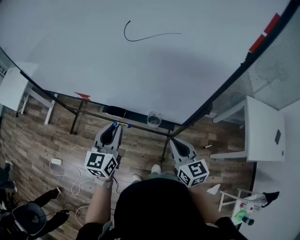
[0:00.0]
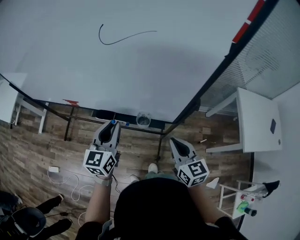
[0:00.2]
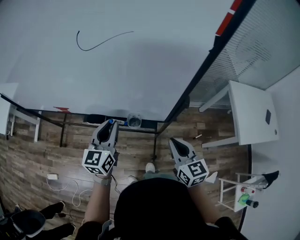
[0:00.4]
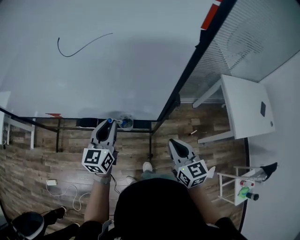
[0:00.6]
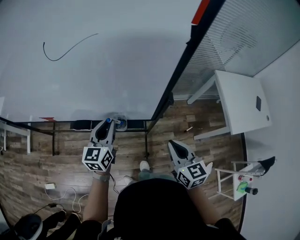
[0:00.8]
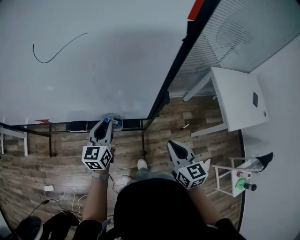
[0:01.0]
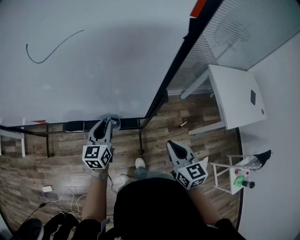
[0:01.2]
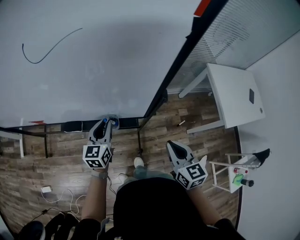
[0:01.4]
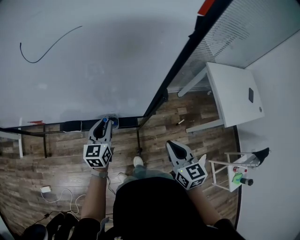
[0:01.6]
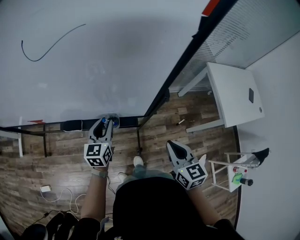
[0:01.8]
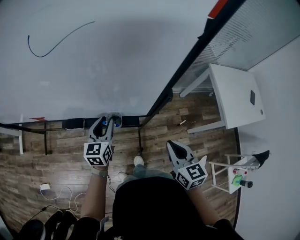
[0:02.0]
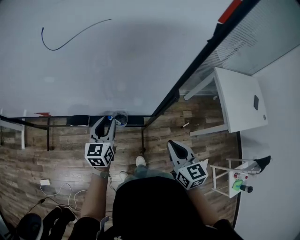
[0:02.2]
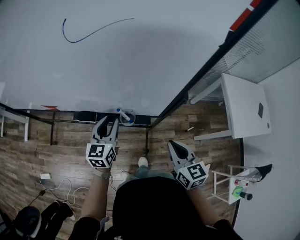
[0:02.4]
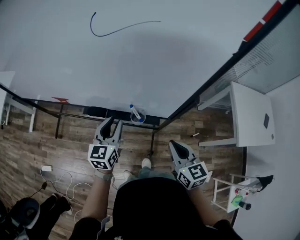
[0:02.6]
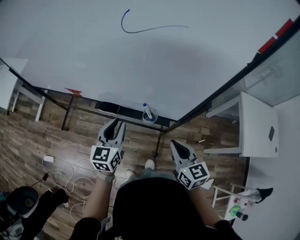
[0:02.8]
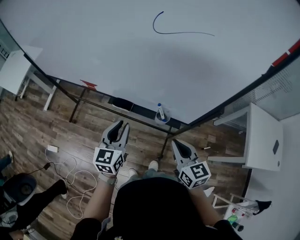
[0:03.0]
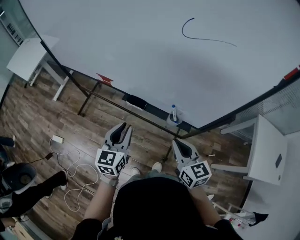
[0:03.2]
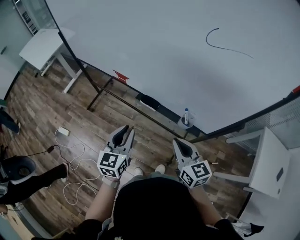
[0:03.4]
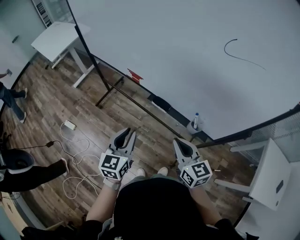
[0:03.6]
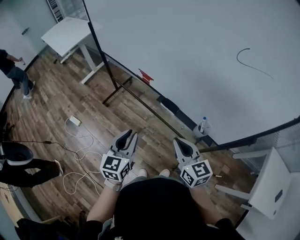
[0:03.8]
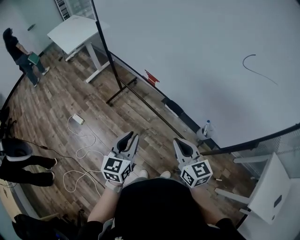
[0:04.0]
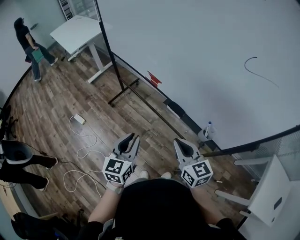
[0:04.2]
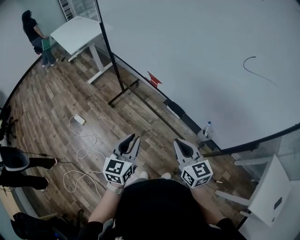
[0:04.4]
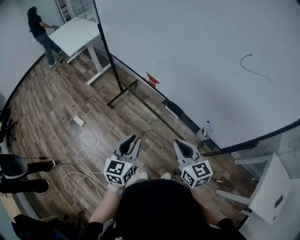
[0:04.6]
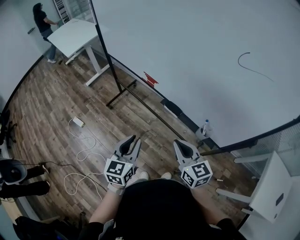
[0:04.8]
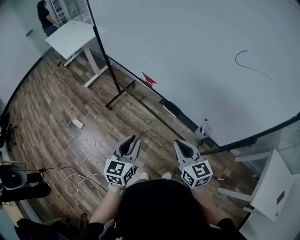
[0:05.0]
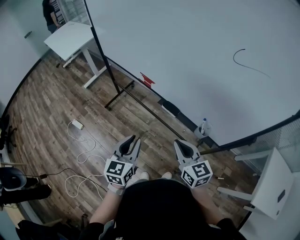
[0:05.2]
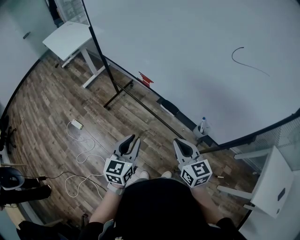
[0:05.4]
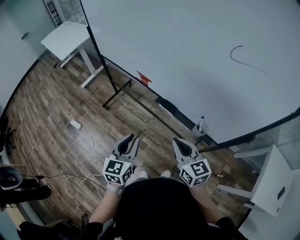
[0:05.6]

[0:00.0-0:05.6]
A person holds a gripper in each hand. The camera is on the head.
0:00.0 to 0:01.4: The left gripper moves to the right, downward and forward, approximately 20 cm, while the right gripper heads to the right, covering approximately 15 cm, and changes its angle by about 20 degrees.
0:01.4 to 0:02.8: The right gripper is displaced to the left by approximately 10 cm. The left gripper is displaced to the left, backward and upward by roughly 15 cm.
0:02.8 to 0:04.2: The right gripper ends up about 25 cm from where it was, and swivels about 30 degrees, while the left gripper changes place by approximately 25 cm, and rotates approximately 30 degrees.
0:04.2 to 0:05.6: The grippers stay close to where they were, moving slightly.

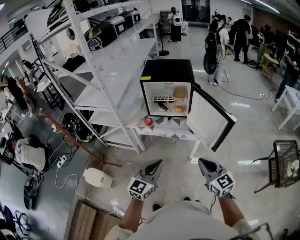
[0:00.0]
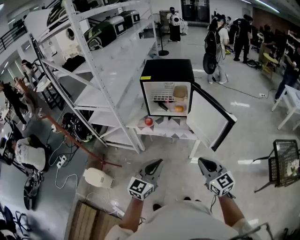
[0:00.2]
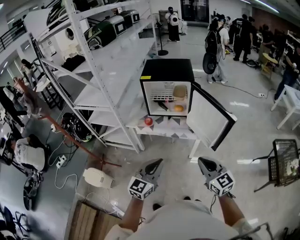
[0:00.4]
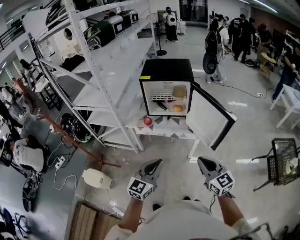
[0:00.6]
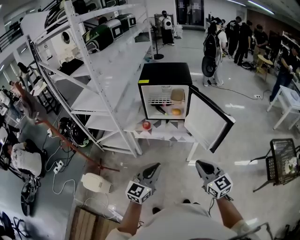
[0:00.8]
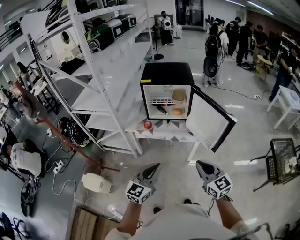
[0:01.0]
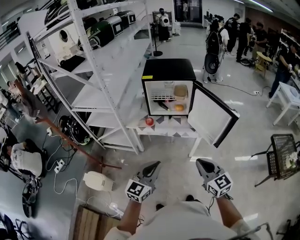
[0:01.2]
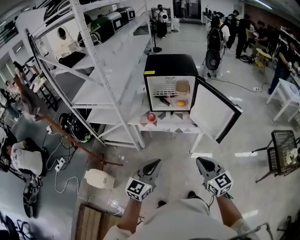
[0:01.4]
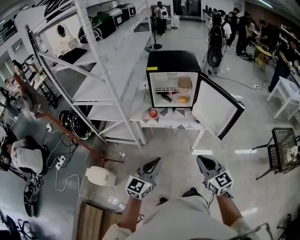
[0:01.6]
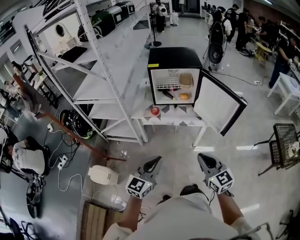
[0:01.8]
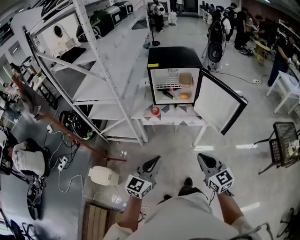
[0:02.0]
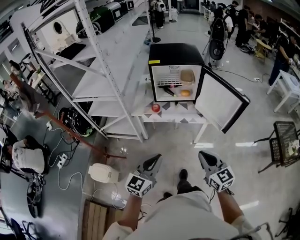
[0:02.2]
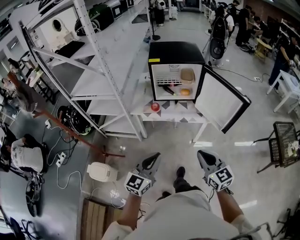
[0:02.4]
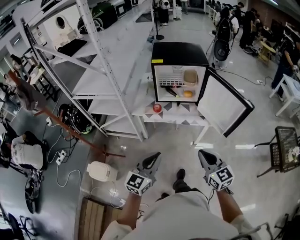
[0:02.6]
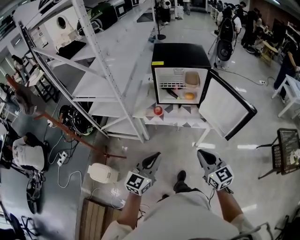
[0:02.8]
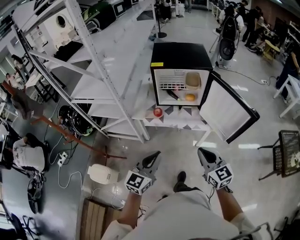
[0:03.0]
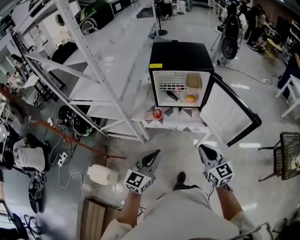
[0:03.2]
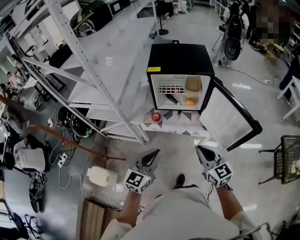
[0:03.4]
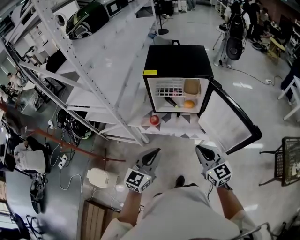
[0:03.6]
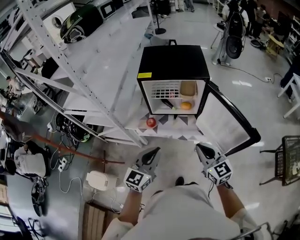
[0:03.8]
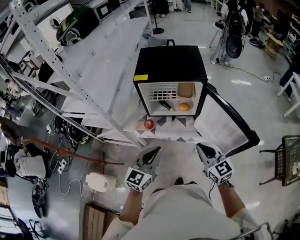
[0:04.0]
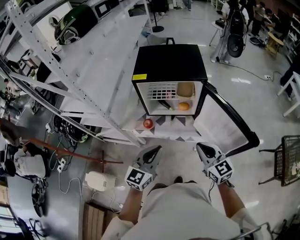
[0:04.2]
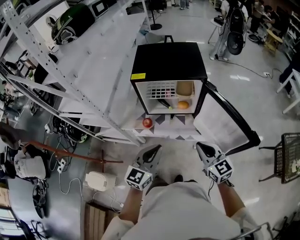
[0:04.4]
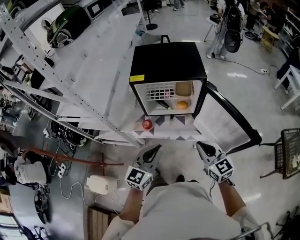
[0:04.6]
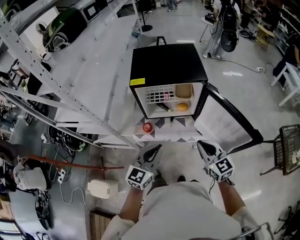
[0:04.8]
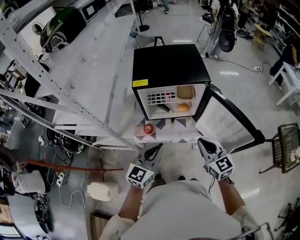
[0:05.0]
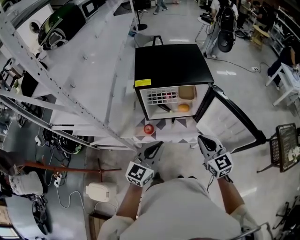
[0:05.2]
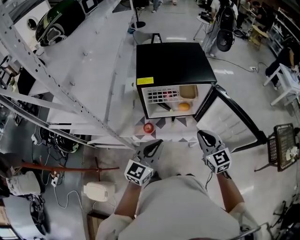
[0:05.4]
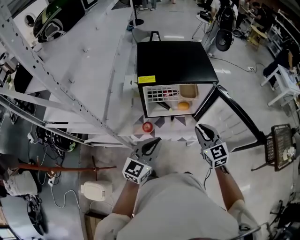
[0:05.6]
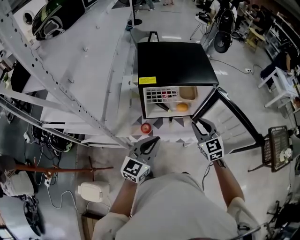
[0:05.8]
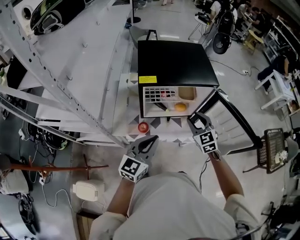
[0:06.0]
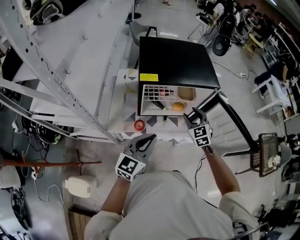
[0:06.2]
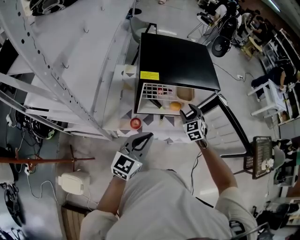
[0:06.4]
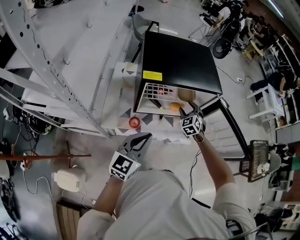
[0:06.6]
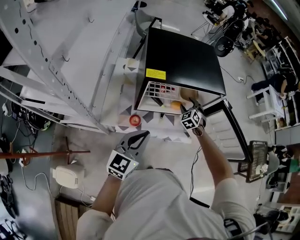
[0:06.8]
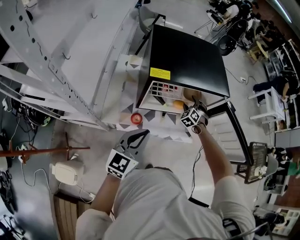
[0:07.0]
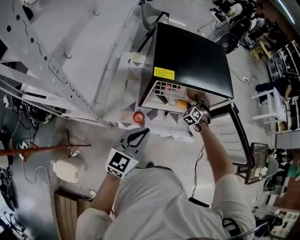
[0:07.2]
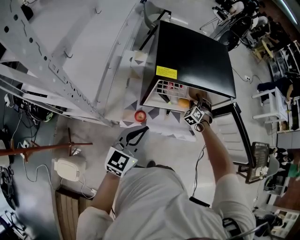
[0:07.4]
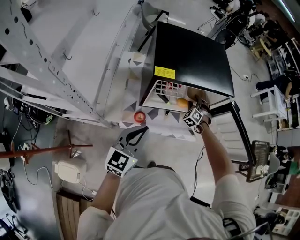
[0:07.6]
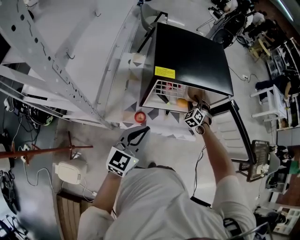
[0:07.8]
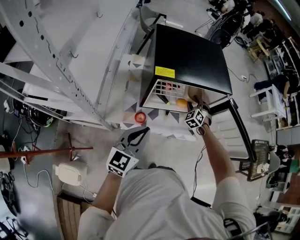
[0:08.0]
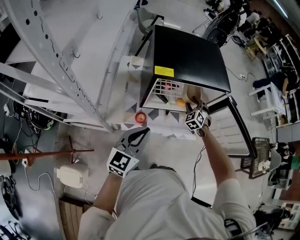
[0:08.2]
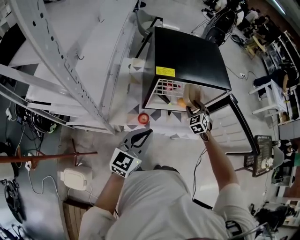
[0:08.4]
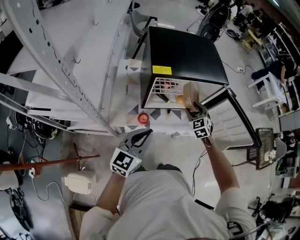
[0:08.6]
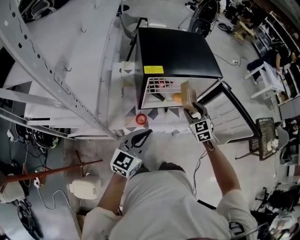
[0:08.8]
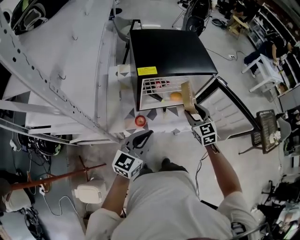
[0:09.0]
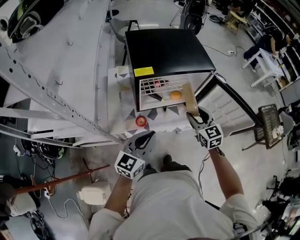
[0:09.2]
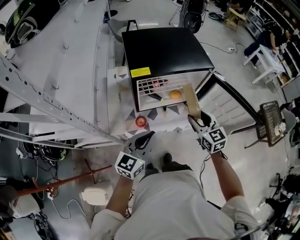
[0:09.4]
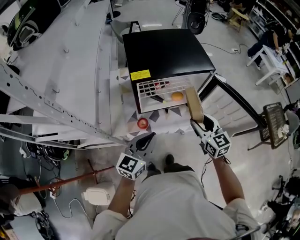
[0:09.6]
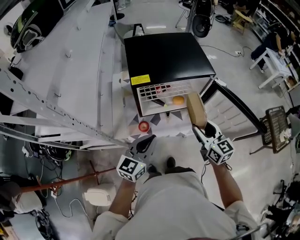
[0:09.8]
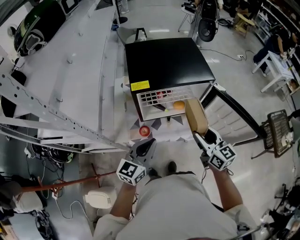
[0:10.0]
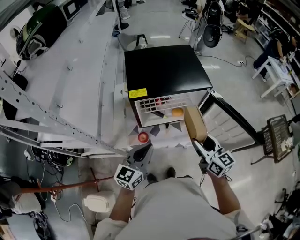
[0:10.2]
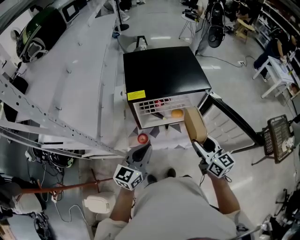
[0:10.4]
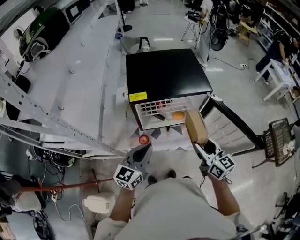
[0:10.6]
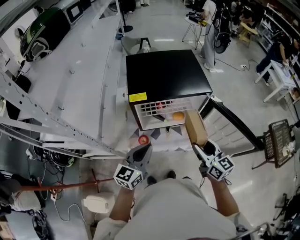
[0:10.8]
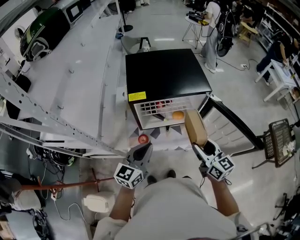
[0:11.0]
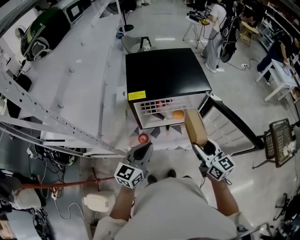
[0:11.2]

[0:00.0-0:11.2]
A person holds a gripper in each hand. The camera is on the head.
0:00.0 to 0:01.6: Both grippers move to the left, some 10 cm.
0:01.6 to 0:03.2: The two grippers go approximately 15 cm forward.
0:03.2 to 0:04.8: The grippers both shift forward by roughly 15 cm.
0:04.8 to 0:06.4: The right gripper travels forward and downward by roughly 25 cm, turns by roughly 40 degrees, and opens. Meanwhile the left gripper travels to the left and forward by approximately 10 cm.
0:06.4 to 0:08.0: The left gripper goes roughly 5 cm to the left. Meanwhile the right gripper heads forward and downward, covering roughly 10 cm, and changes its angle by approximately 20 degrees.
0:08.0 to 0:09.6: The left gripper moves to the right, approximately 5 cm. Meanwhile the right gripper is displaced backward and upward by about 25 cm, and rotates around the line of its fingers by roughly 50 degrees, clockwise from behind.
0:09.6 to 0:11.2: The right gripper moves approximately 5 cm.

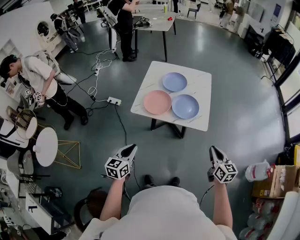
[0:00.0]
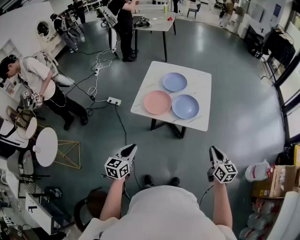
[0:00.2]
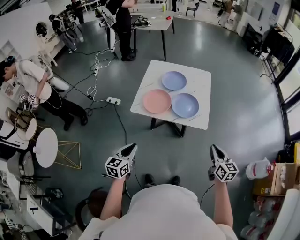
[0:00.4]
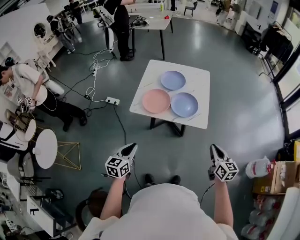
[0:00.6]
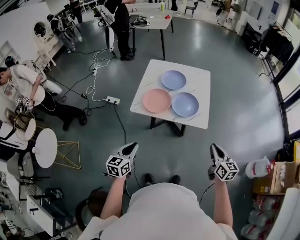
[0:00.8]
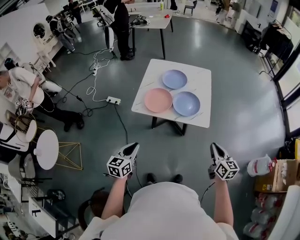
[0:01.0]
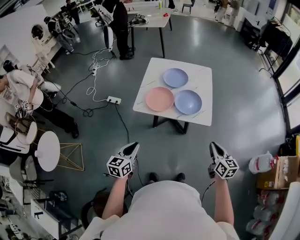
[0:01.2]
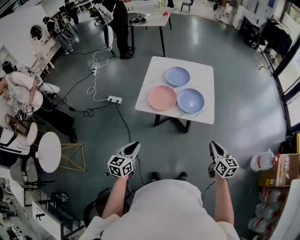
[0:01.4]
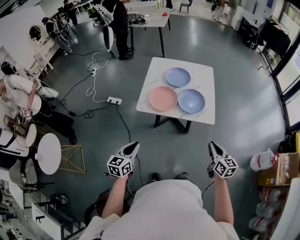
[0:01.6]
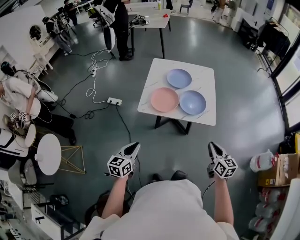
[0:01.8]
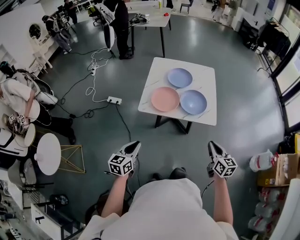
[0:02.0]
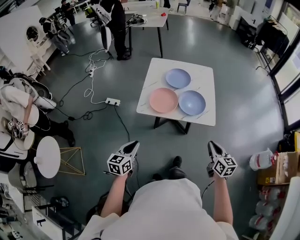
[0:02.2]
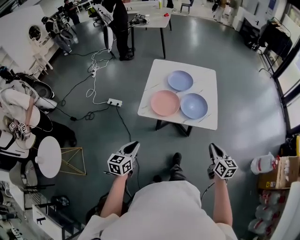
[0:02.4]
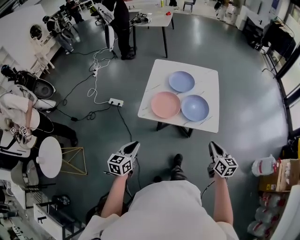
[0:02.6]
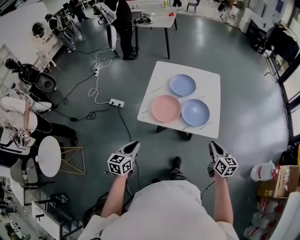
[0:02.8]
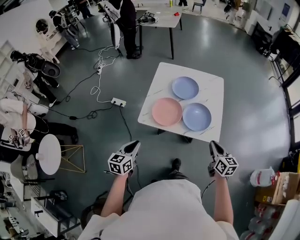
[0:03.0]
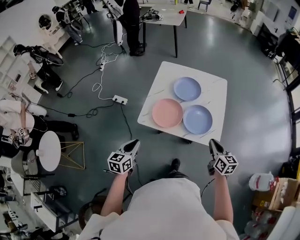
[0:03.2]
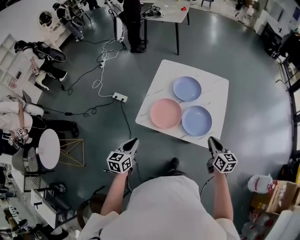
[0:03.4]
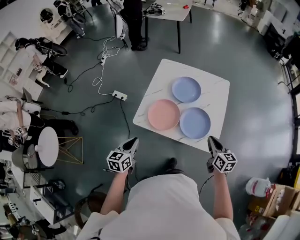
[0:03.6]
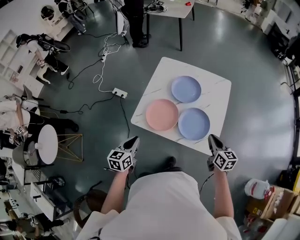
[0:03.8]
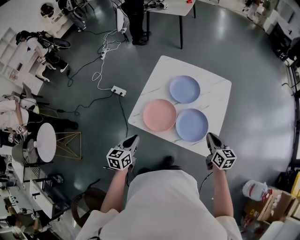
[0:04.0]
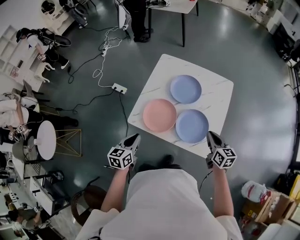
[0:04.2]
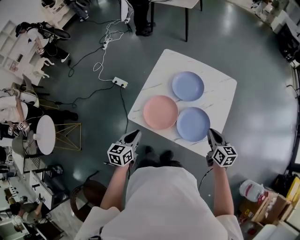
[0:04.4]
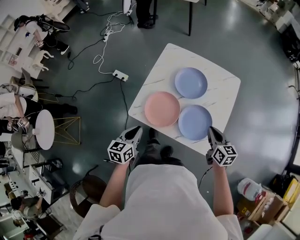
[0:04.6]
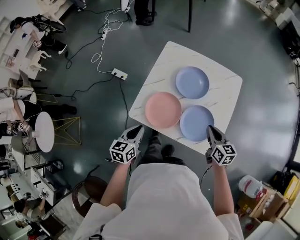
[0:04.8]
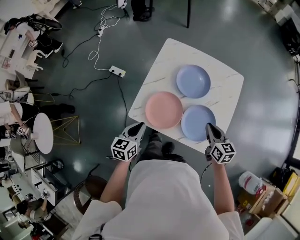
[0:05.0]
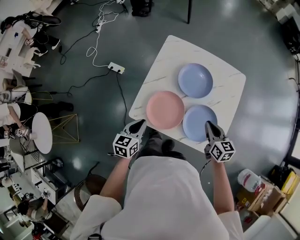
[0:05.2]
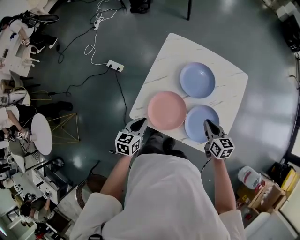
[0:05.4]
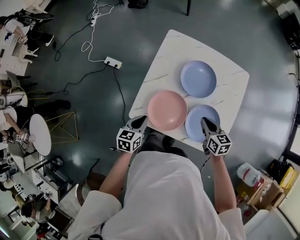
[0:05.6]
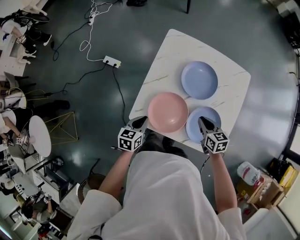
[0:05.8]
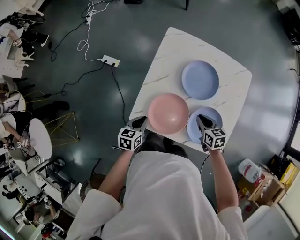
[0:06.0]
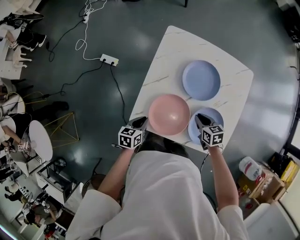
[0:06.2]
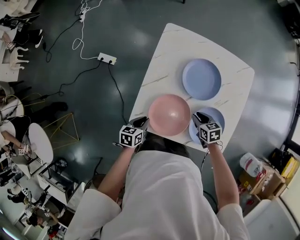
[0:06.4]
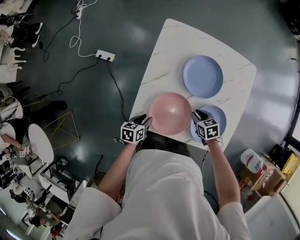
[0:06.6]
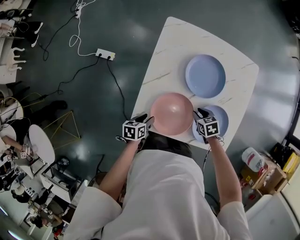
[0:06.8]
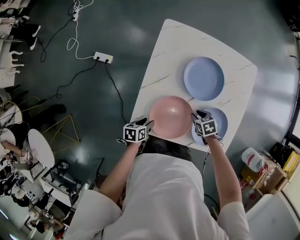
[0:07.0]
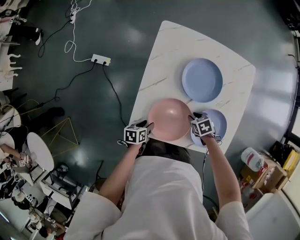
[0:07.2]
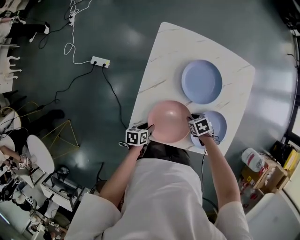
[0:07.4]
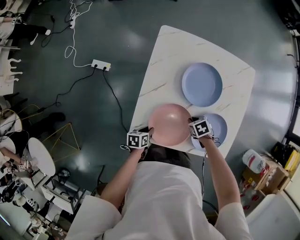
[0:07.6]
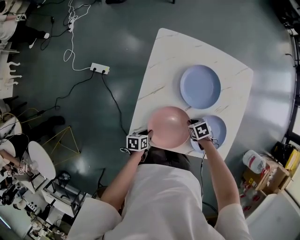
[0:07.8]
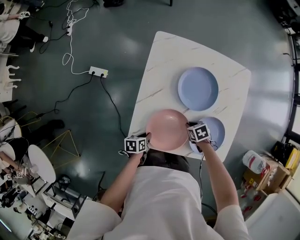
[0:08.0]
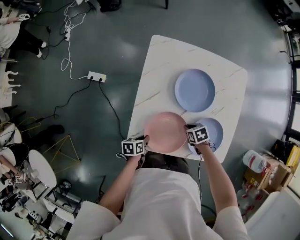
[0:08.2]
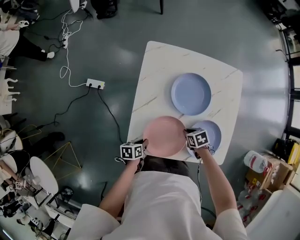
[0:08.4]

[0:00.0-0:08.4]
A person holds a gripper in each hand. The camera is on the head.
0:00.0 to 0:01.4: Both grippers move to the left, about 5 cm.
0:01.4 to 0:02.8: The grippers both shift forward by some 10 cm.
0:02.8 to 0:04.2: The right gripper goes some 25 cm forward. The left gripper shifts roughly 20 cm forward and to the right.
0:04.2 to 0:05.6: The right gripper shifts approximately 20 cm forward, to the left and downward. Meanwhile the left gripper is displaced forward and downward by about 20 cm.
0:05.6 to 0:07.0: Both grippers travel together downward, roughly 15 cm. The left gripper swivels about 30 degrees, and opens up, while the right gripper points its fingers roughly 30 degrees further downward, and opens its fingers.
0:07.0 to 0:08.4: The left gripper closes. The right gripper closes up.
